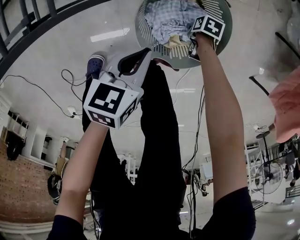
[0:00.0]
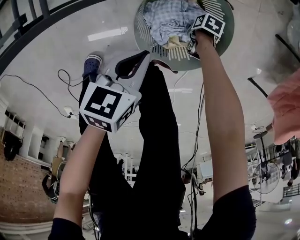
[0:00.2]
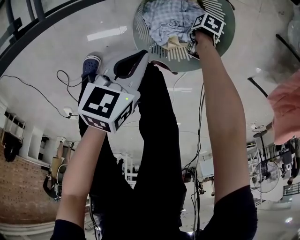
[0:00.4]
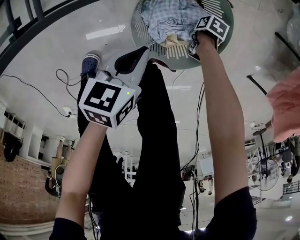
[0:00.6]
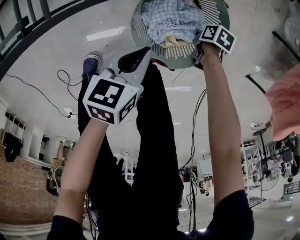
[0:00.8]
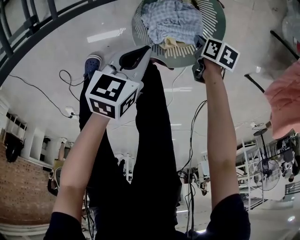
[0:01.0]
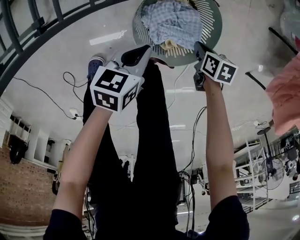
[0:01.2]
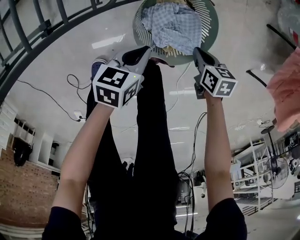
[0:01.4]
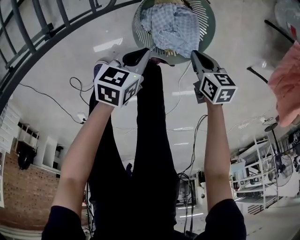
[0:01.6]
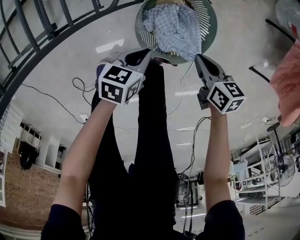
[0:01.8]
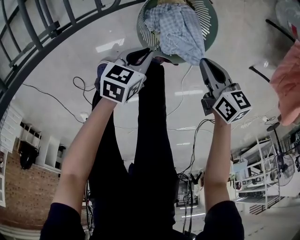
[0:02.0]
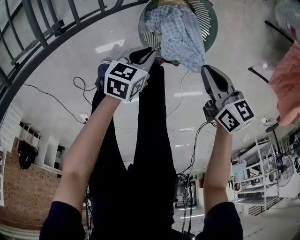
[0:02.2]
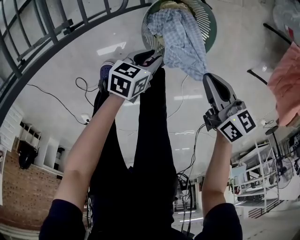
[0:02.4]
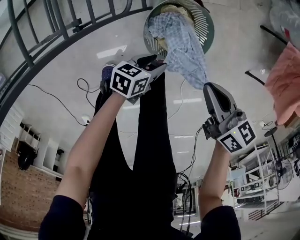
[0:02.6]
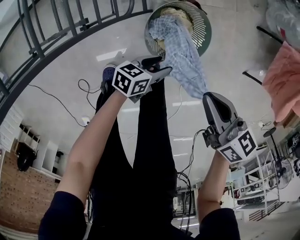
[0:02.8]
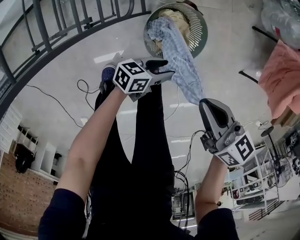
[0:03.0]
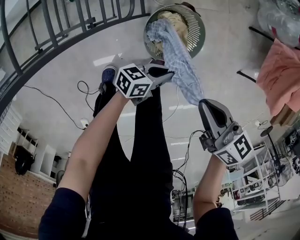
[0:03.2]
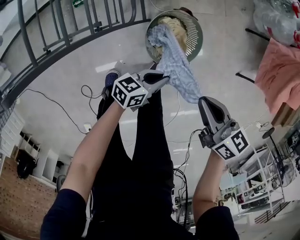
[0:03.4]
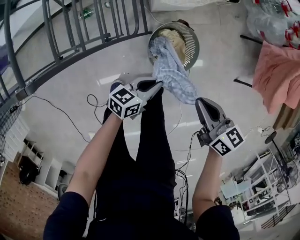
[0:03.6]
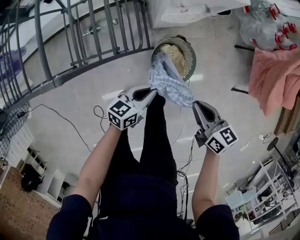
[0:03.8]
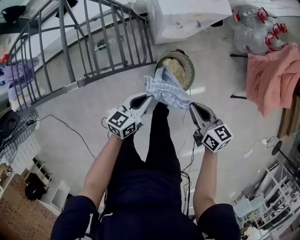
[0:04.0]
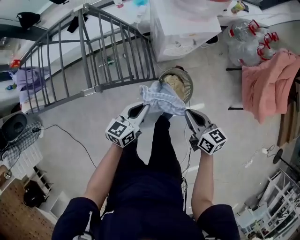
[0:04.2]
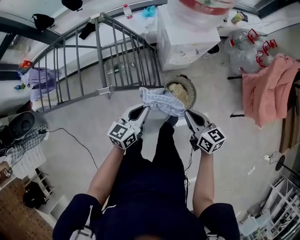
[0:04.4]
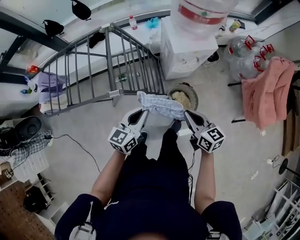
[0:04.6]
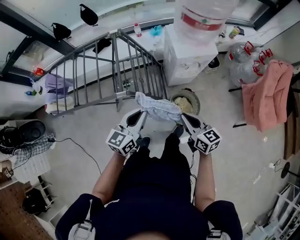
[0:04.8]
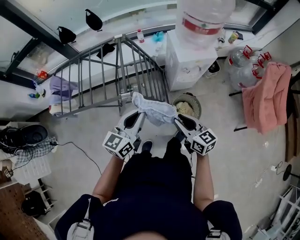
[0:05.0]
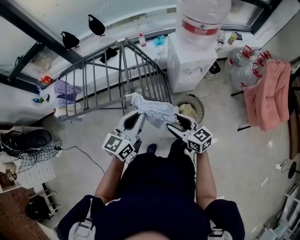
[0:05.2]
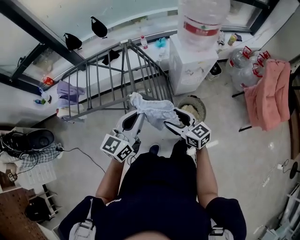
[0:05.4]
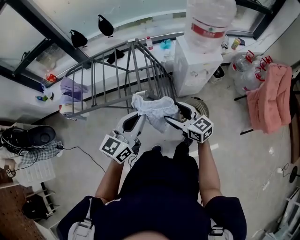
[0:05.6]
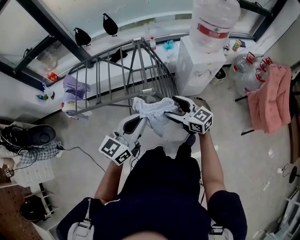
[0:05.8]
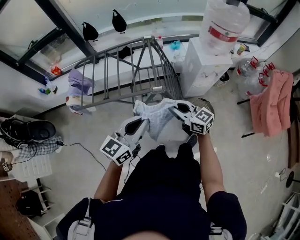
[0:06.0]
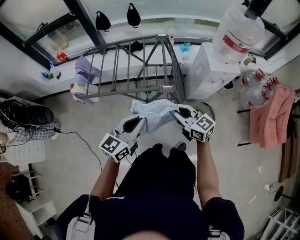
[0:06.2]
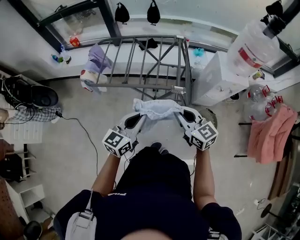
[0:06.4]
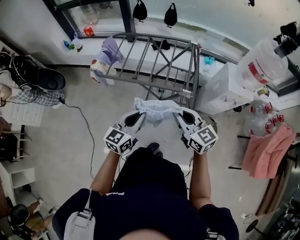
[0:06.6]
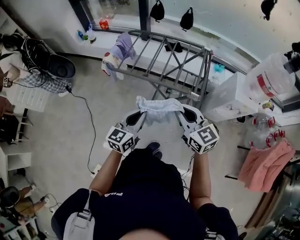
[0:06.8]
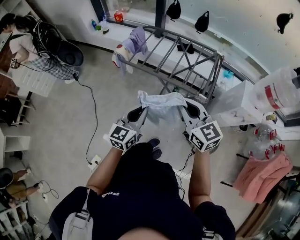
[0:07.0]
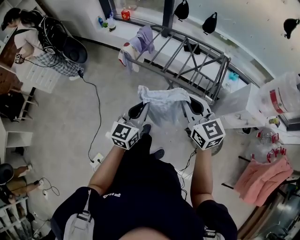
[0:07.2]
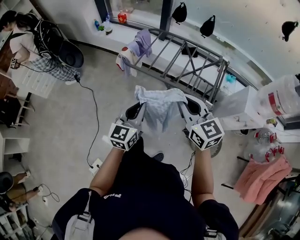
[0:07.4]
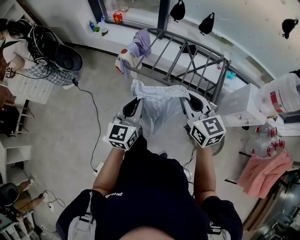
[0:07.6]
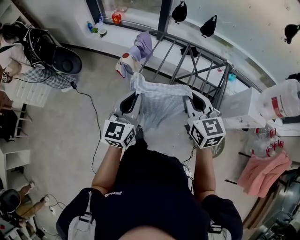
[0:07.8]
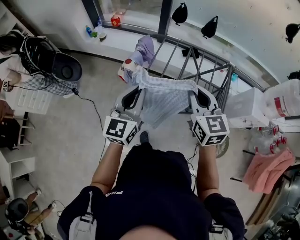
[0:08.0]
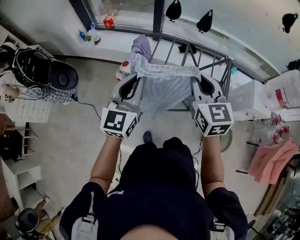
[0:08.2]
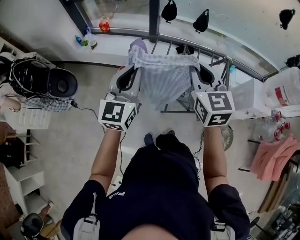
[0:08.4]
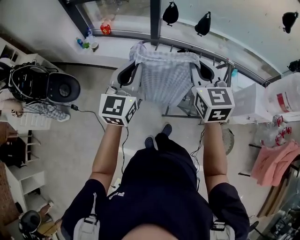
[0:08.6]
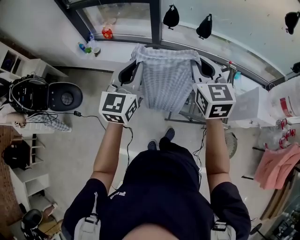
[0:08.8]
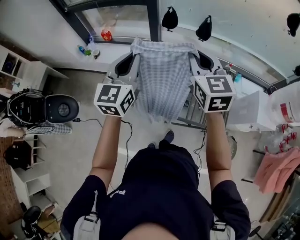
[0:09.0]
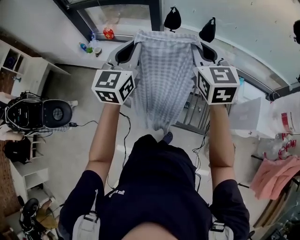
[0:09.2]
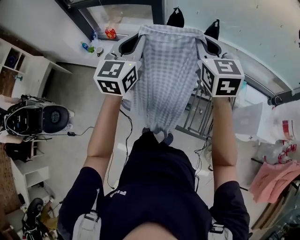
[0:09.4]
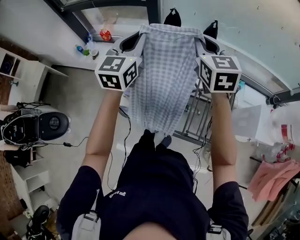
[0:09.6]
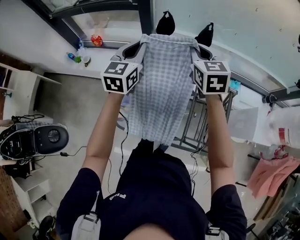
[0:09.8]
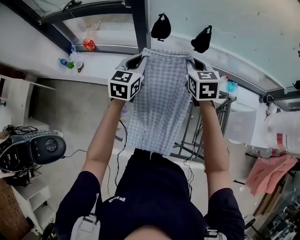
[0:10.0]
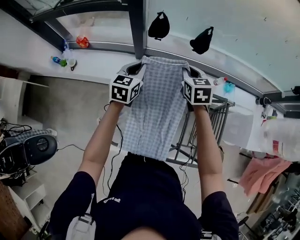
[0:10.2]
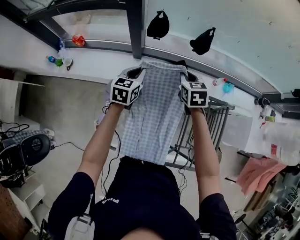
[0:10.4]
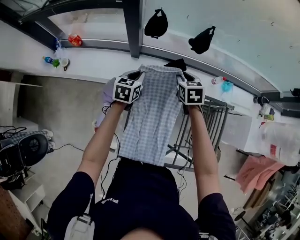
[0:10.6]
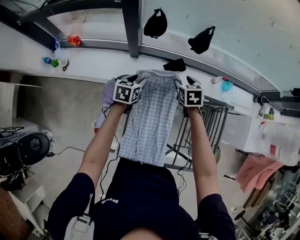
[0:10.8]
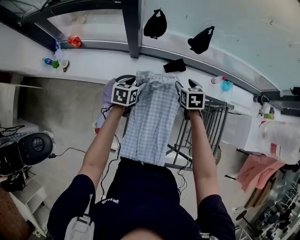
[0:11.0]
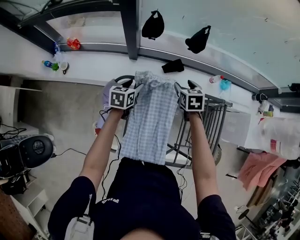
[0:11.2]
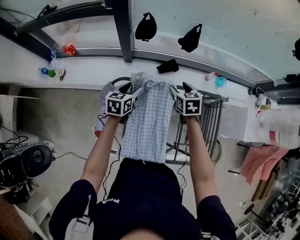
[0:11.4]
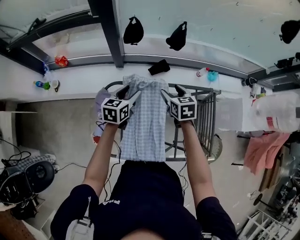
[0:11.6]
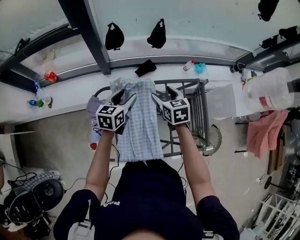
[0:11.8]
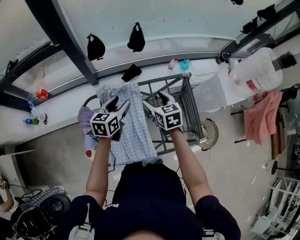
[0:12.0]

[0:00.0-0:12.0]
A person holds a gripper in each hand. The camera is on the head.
0:00.0 to 0:01.6: The right gripper is displaced upward by approximately 25 cm, rotates roughly 40 degrees, and closes up.
0:01.6 to 0:03.0: The left gripper heads upward, covering roughly 10 cm, swivels roughly 30 degrees, and opens. The right gripper shifts approximately 30 cm upward, and rotates some 30 degrees.
0:03.0 to 0:04.4: The left gripper goes about 40 cm upward, turns by about 50 degrees, and closes its fingers, while the right gripper travels upward by some 20 cm.
0:04.4 to 0:06.0: The right gripper is displaced to the left by some 30 cm, turns by about 30 degrees, and opens, then closes again. Meanwhile the left gripper shifts approximately 35 cm to the left, upward and backward.
0:06.0 to 0:07.6: The right gripper shifts by about 35 cm, while the left gripper shifts by some 35 cm, and swivels roughly 50 degrees.
0:07.6 to 0:09.0: Both grippers travel together forward, approximately 35 cm. The right gripper turns by some 20 degrees.
0:09.0 to 0:10.4: The two grippers go some 40 cm forward and downward. The right gripper tips its fingers downward by roughly 30 degrees. The left gripper swivels roughly 30 degrees.
0:10.4 to 0:12.0: The right gripper travels backward and to the right by approximately 20 cm, and opens, while the left gripper moves to the right and backward, about 20 cm, turns by some 20 degrees, and opens up.

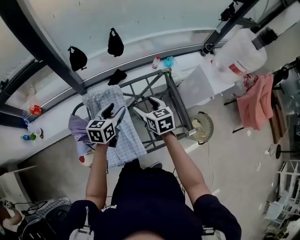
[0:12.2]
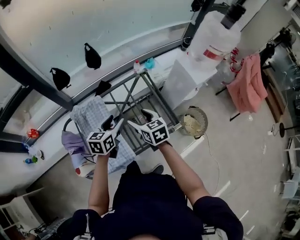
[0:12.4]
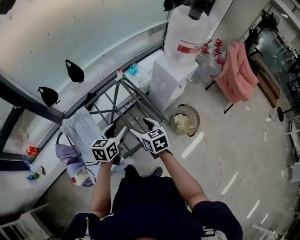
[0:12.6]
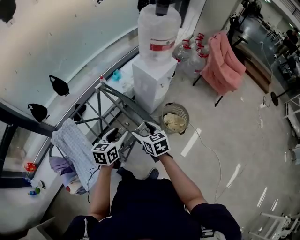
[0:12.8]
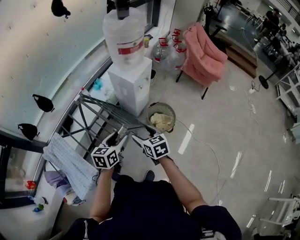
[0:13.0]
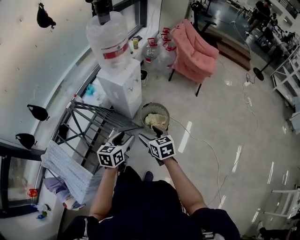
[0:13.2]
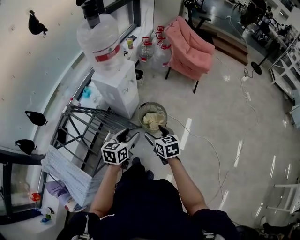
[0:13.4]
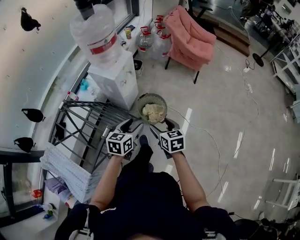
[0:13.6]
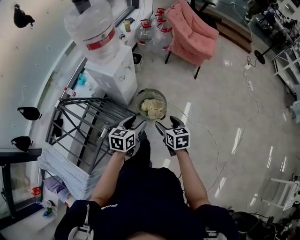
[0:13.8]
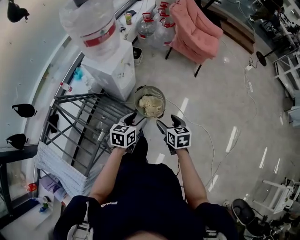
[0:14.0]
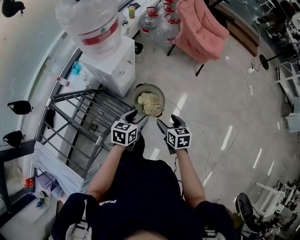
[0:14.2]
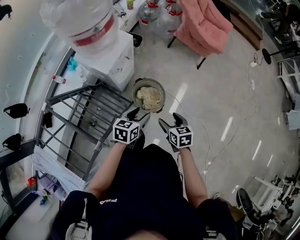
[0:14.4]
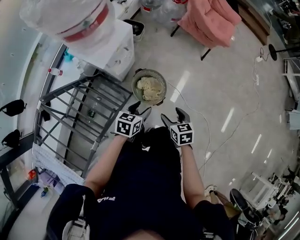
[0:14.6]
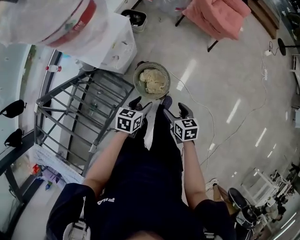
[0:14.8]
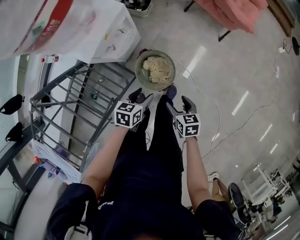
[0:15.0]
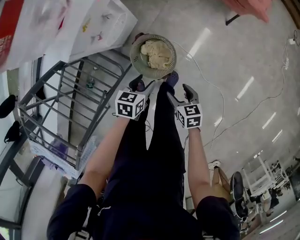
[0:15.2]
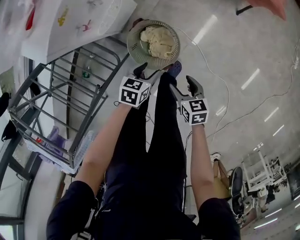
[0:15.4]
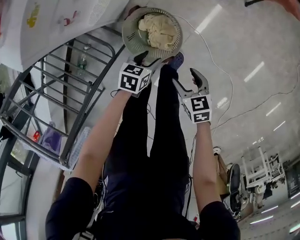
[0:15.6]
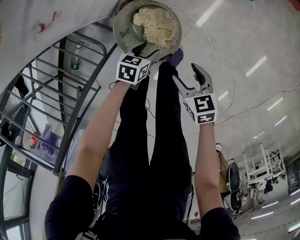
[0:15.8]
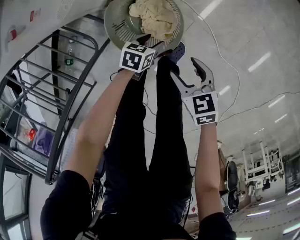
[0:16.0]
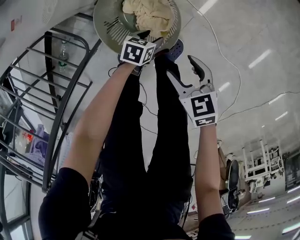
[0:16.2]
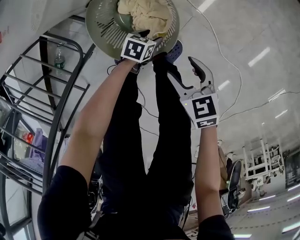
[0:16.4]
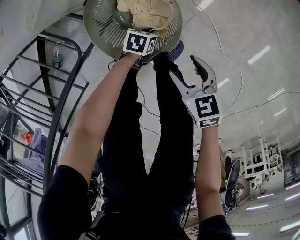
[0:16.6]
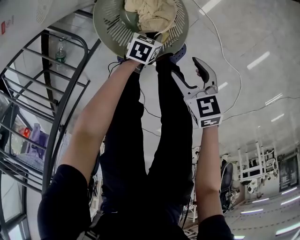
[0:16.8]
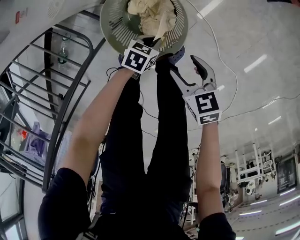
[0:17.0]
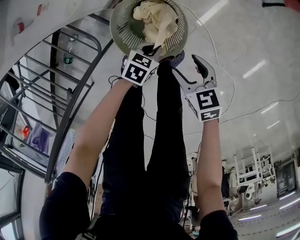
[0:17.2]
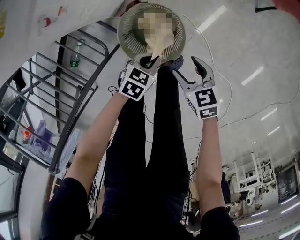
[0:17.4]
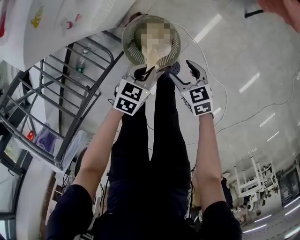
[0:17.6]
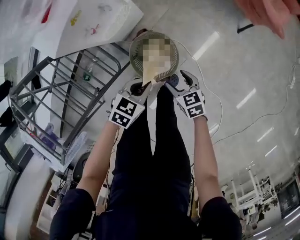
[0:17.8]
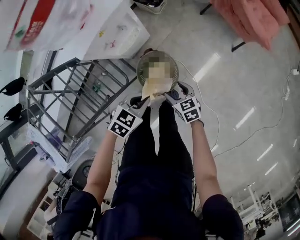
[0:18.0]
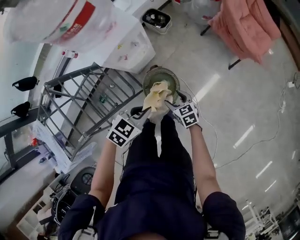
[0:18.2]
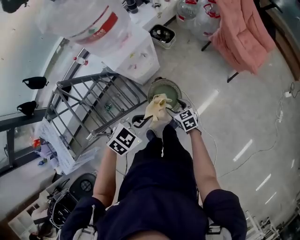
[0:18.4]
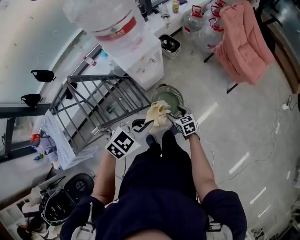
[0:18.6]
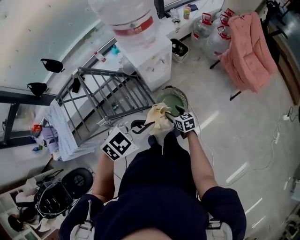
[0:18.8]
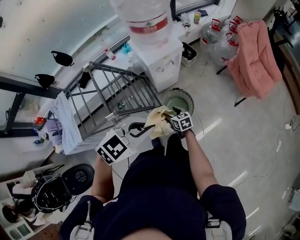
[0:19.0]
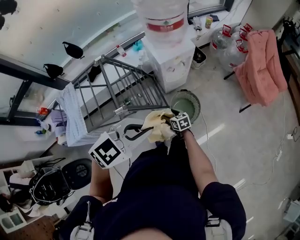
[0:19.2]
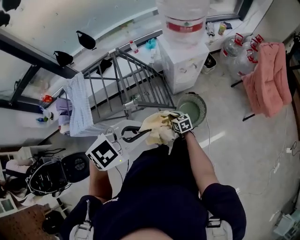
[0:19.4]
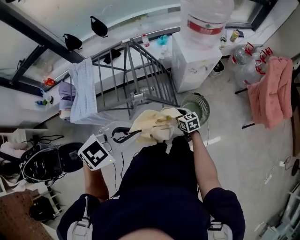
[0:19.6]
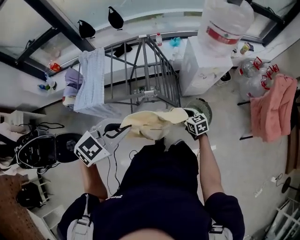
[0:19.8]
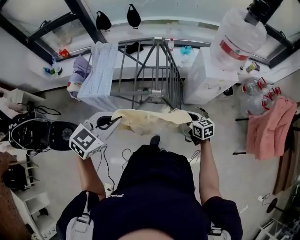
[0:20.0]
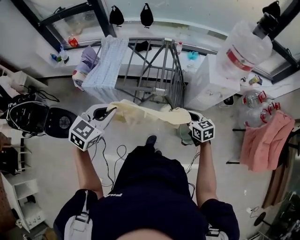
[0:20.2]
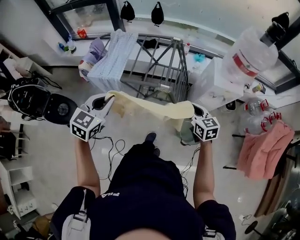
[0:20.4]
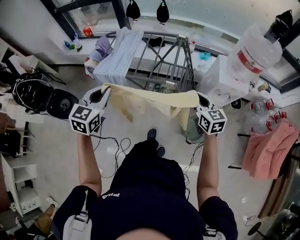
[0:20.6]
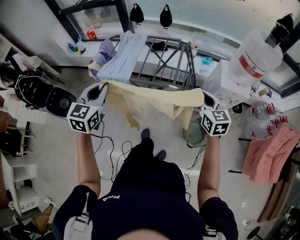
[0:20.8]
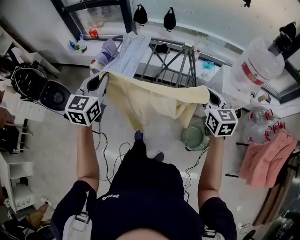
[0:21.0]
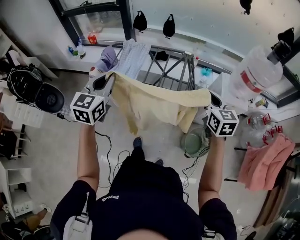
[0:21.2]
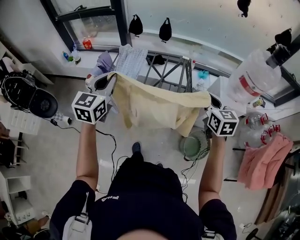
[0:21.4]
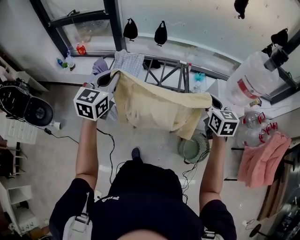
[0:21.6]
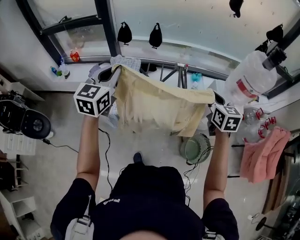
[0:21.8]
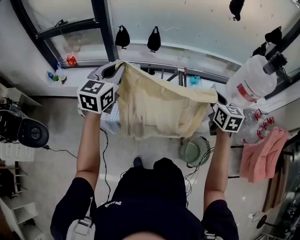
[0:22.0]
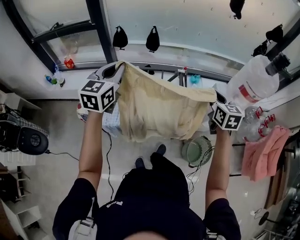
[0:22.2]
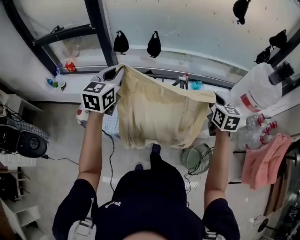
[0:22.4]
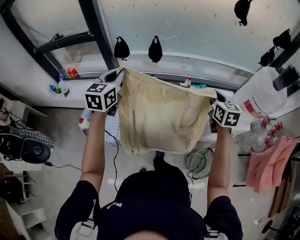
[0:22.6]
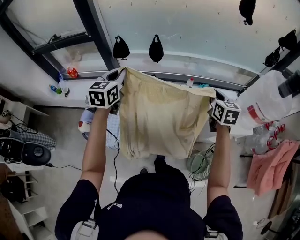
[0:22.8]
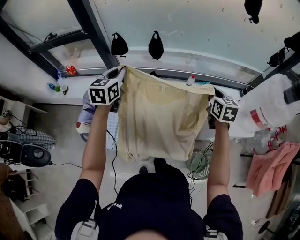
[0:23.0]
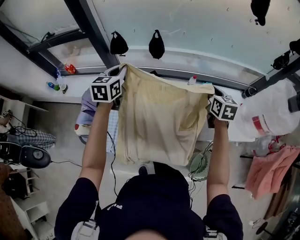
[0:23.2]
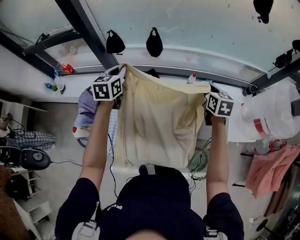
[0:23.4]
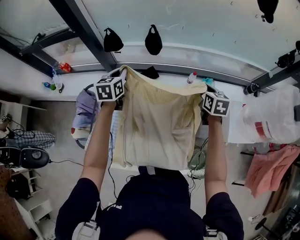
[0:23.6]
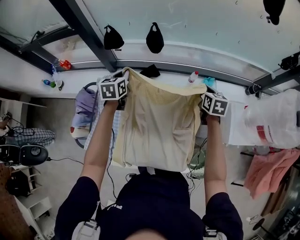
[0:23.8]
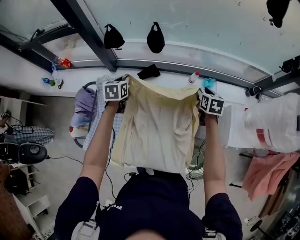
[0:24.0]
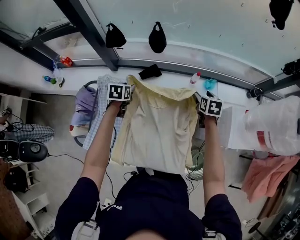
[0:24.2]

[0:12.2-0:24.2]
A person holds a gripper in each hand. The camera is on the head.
0:12.2 to 0:13.8: Both grippers are carried some 70 cm. The left gripper changes its angle by about 50 degrees; the right gripper turns by some 50 degrees.
0:13.8 to 0:15.2: The grippers both shift downward and forward by about 40 cm. The left gripper swivels roughly 20 degrees.
0:15.2 to 0:16.6: The right gripper heads downward, covering roughly 30 cm; the left gripper goes about 50 cm downward, swivels roughly 20 degrees, and closes its fingers.
0:16.6 to 0:18.2: The left gripper travels upward by about 70 cm, and rotates approximately 40 degrees. The right gripper travels upward by approximately 35 cm, and turns by some 20 degrees.
0:18.2 to 0:19.8: The left gripper moves approximately 50 cm, and swivels some 40 degrees, while the right gripper changes place by some 35 cm, turns by roughly 30 degrees, and closes up.
0:19.8 to 0:21.2: The left gripper moves roughly 25 cm, and changes its angle by roughly 60 degrees. The right gripper is displaced upward by approximately 30 cm, and changes its angle by some 20 degrees.
0:21.2 to 0:22.6: The two grippers go roughly 30 cm forward.
0:22.6 to 0:24.2: Both grippers move downward and forward, approximately 35 cm. The right gripper changes its angle by approximately 20 degrees, and opens, while the left gripper angles its fingers downward, by some 40 degrees, and opens up.
